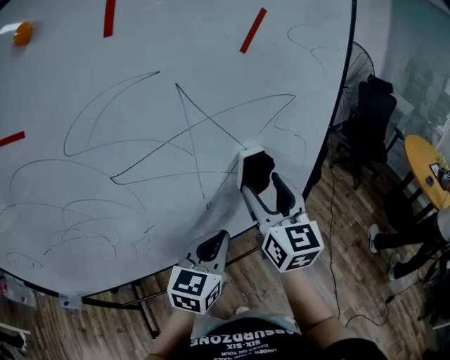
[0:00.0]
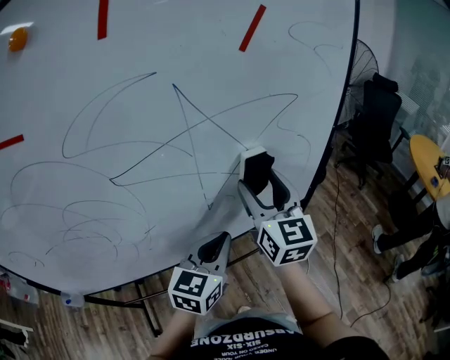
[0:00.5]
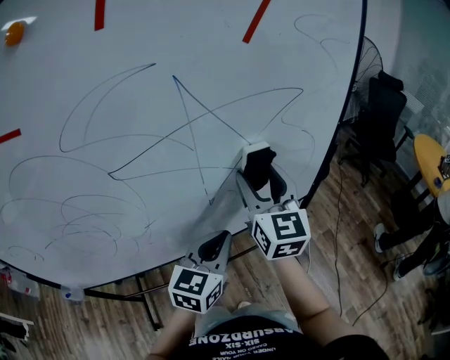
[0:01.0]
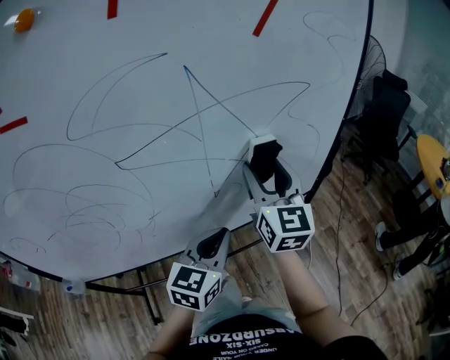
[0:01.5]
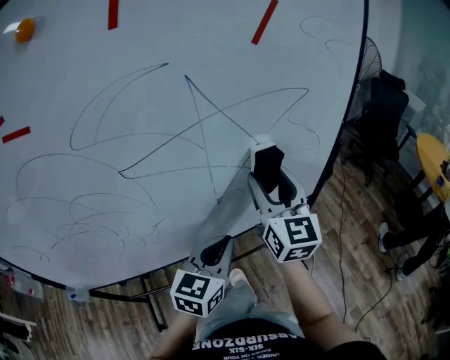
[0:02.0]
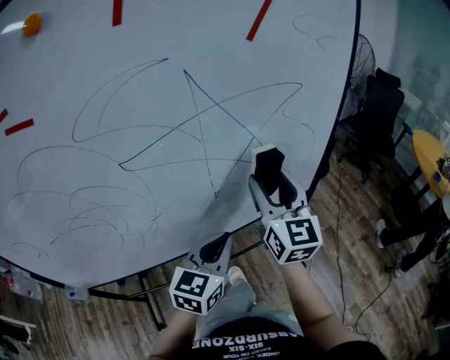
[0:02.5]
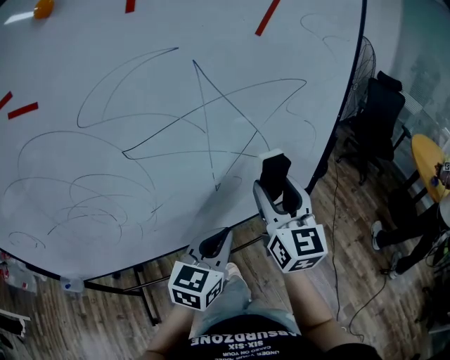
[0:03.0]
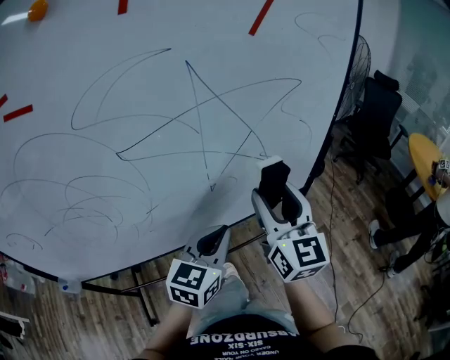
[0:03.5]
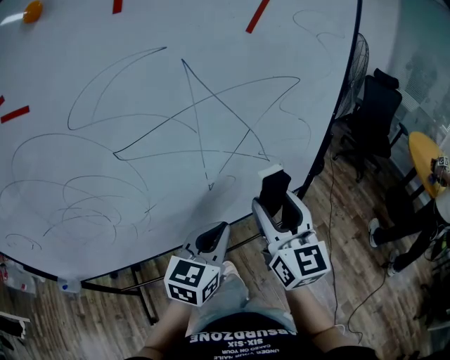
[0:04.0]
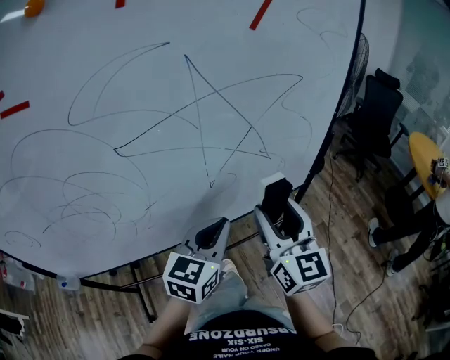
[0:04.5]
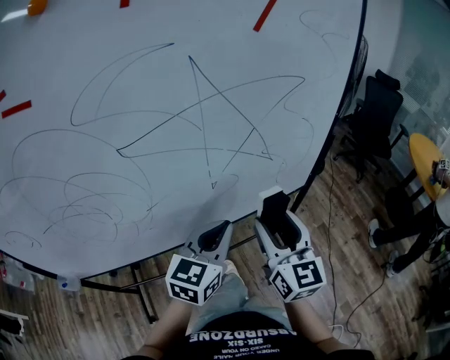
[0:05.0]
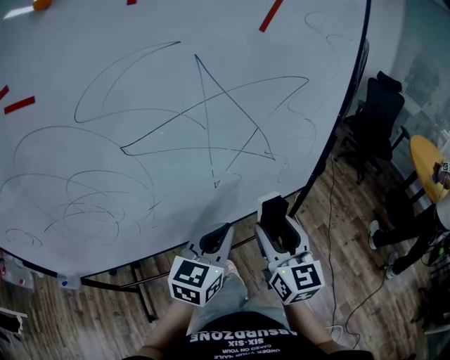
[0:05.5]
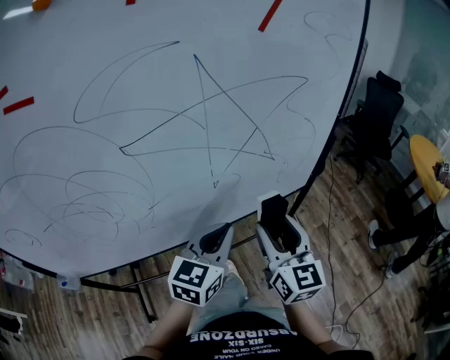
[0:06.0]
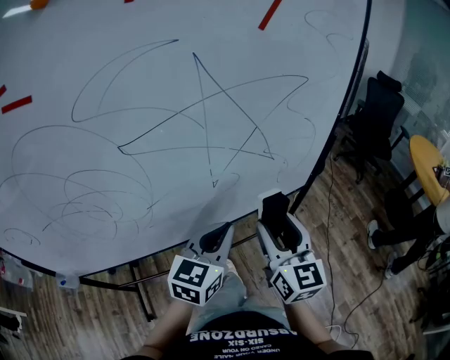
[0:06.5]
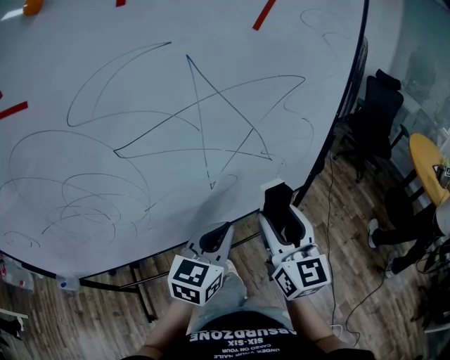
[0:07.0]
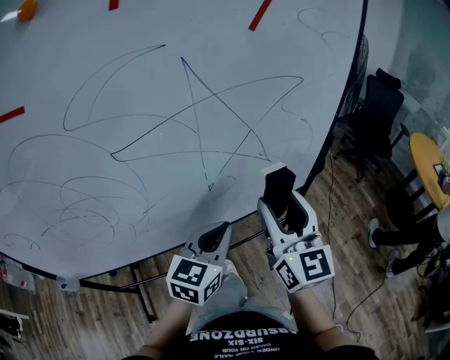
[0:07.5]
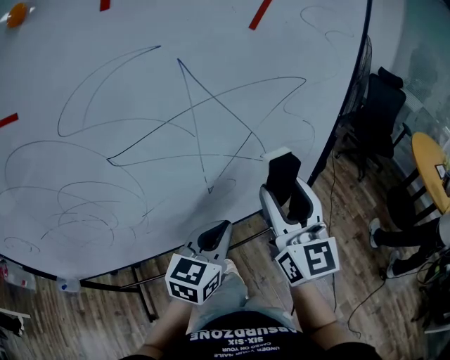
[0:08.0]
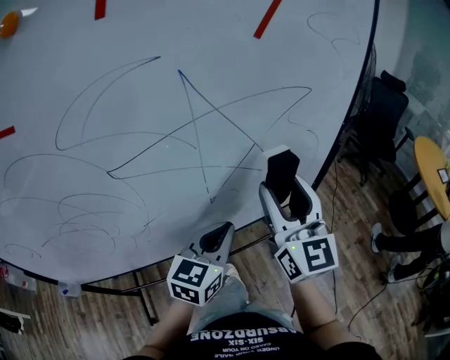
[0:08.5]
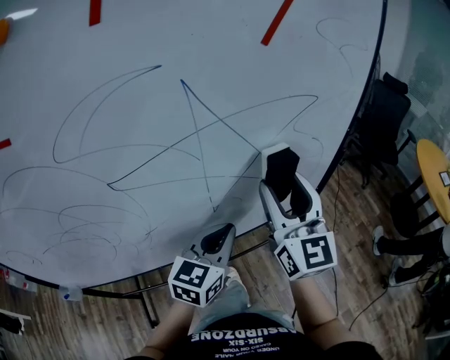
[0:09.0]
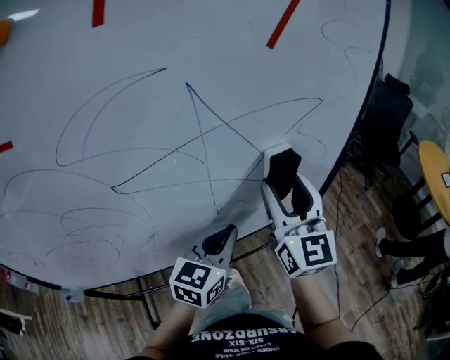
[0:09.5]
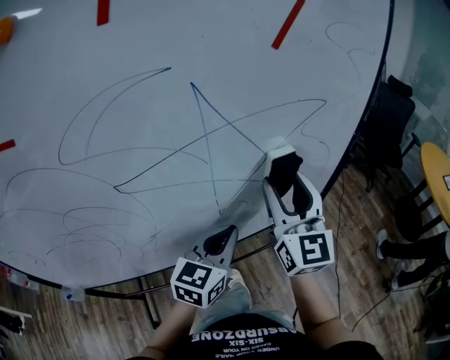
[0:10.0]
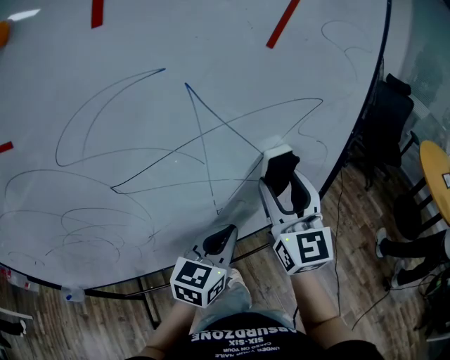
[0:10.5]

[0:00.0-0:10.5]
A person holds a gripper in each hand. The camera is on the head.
0:00.0 to 0:02.0: The grippers make only small movements.
0:02.0 to 0:04.0: The right gripper heads backward, covering some 10 cm.
0:04.0 to 0:06.5: The right gripper travels downward by roughly 5 cm.
0:06.5 to 0:08.5: The right gripper moves upward and forward, some 15 cm.
0:08.5 to 0:10.5: The grippers stay close to where they were, moving slightly.

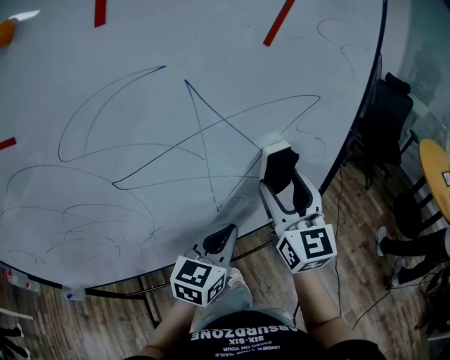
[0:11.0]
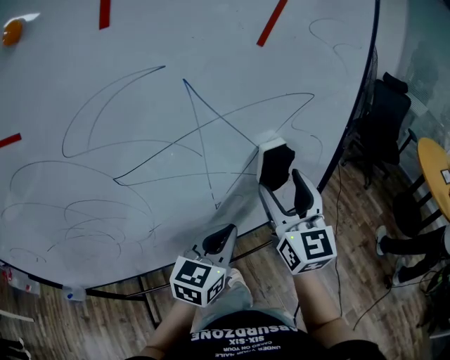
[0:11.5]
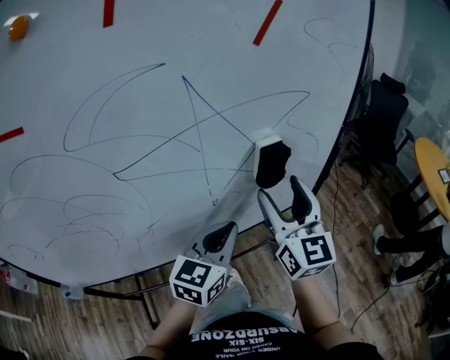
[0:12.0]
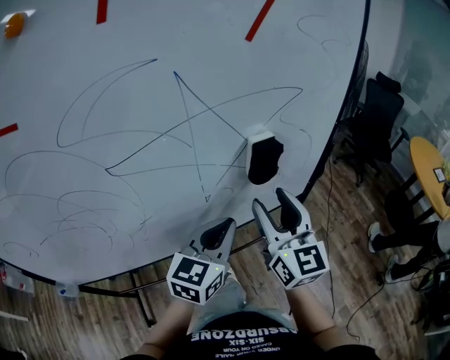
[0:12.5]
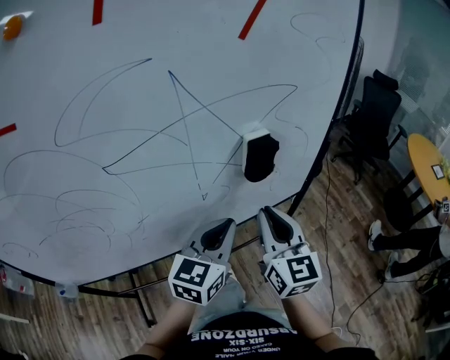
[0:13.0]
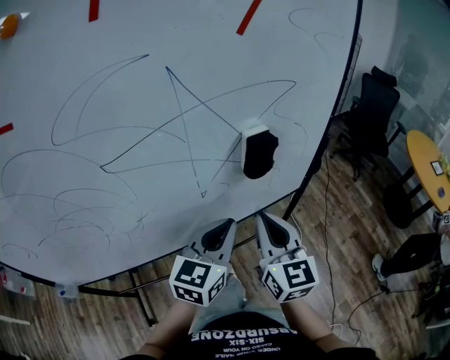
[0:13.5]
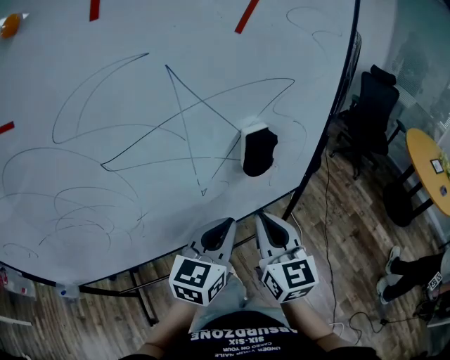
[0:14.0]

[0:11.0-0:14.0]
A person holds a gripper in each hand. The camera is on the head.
0:11.0 to 0:12.5: The right gripper goes some 5 cm backward.
0:12.5 to 0:14.0: The right gripper ends up roughly 5 cm from where it was, and closes.

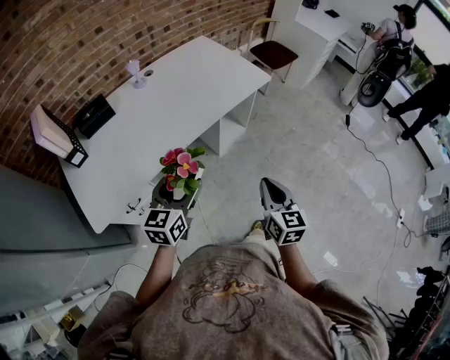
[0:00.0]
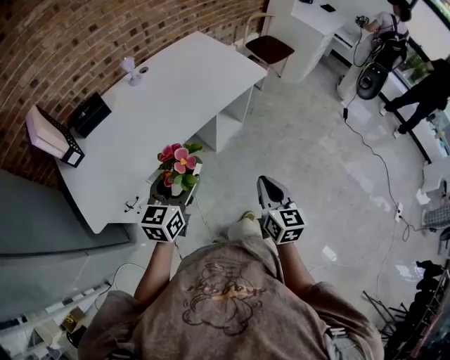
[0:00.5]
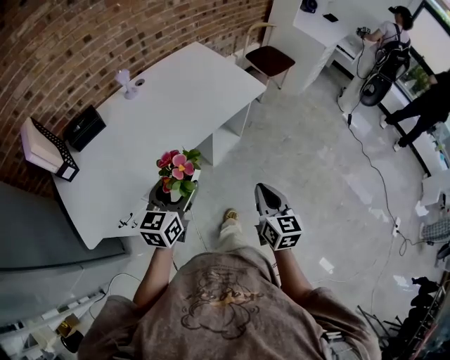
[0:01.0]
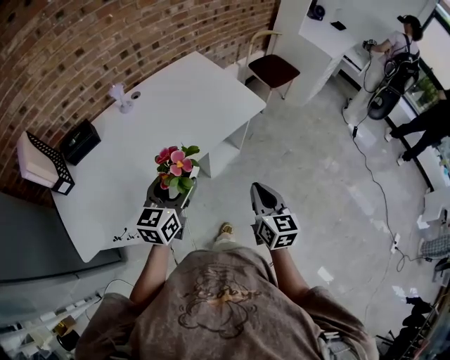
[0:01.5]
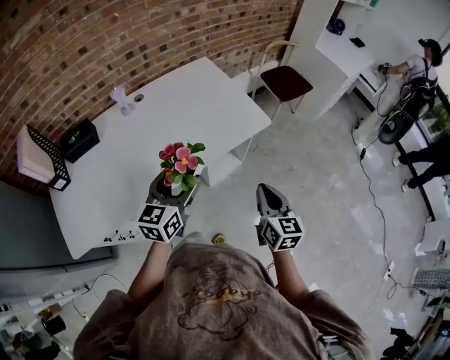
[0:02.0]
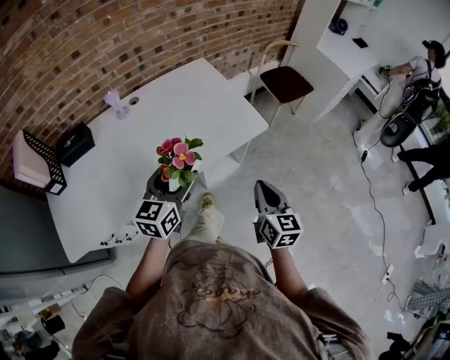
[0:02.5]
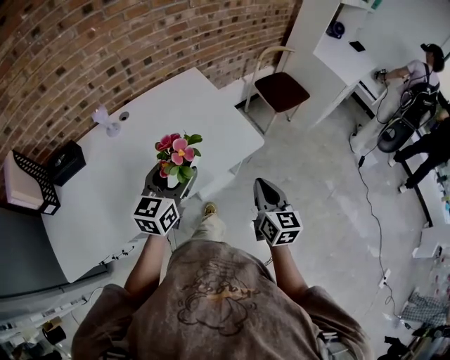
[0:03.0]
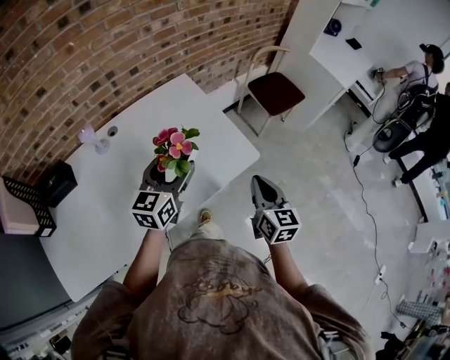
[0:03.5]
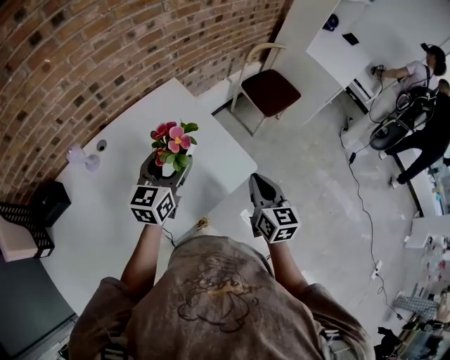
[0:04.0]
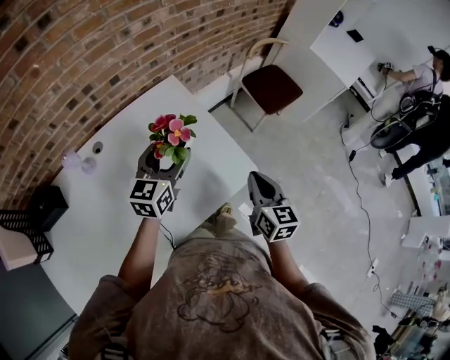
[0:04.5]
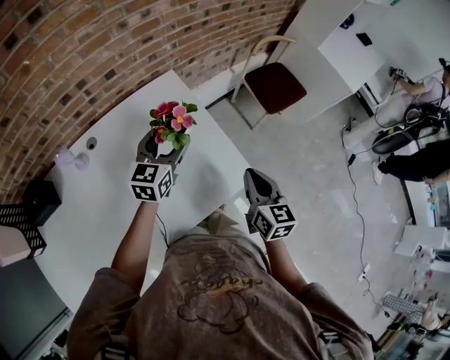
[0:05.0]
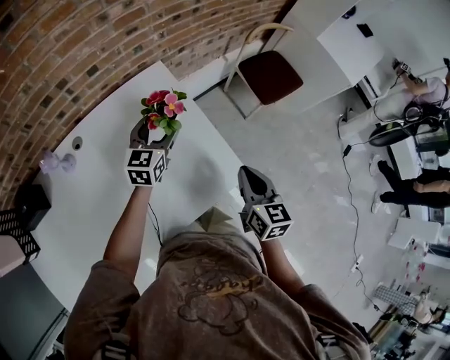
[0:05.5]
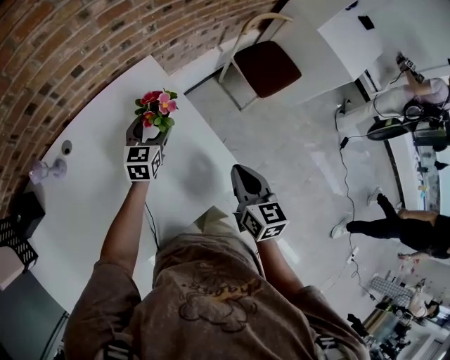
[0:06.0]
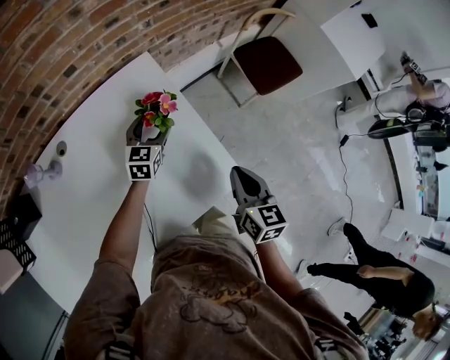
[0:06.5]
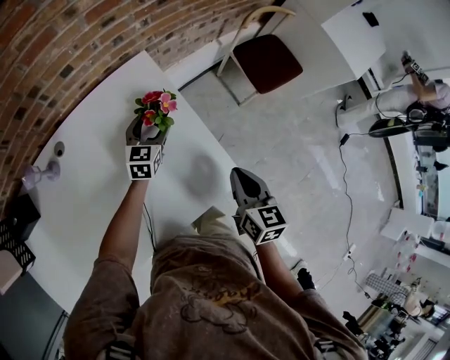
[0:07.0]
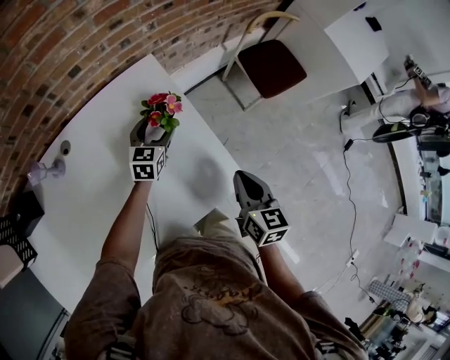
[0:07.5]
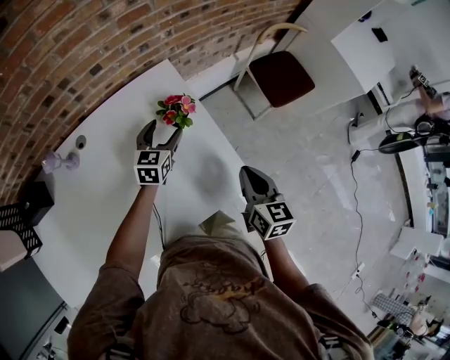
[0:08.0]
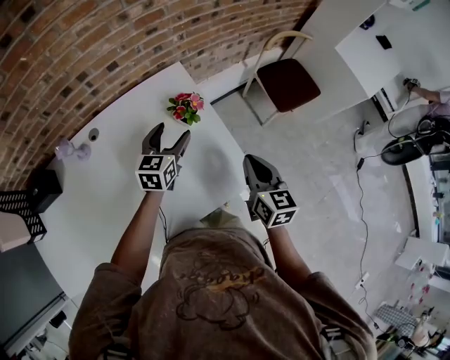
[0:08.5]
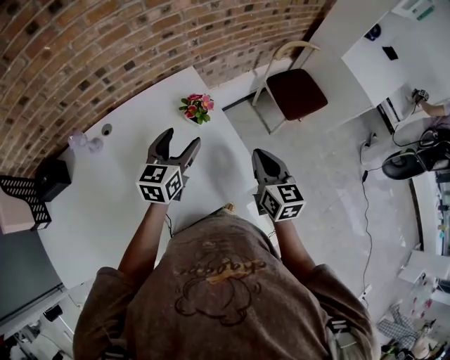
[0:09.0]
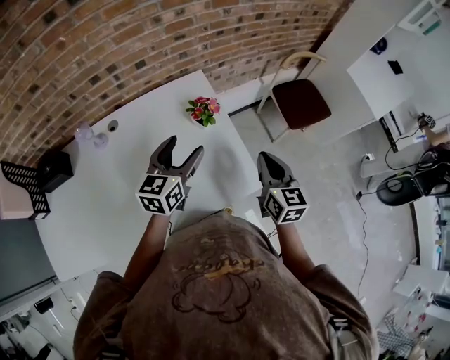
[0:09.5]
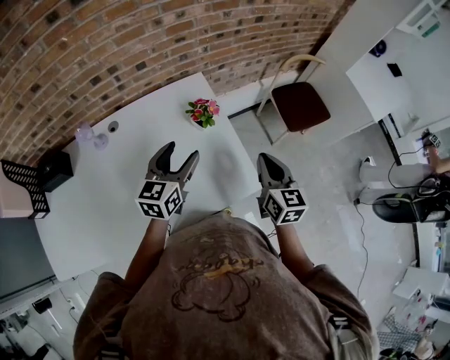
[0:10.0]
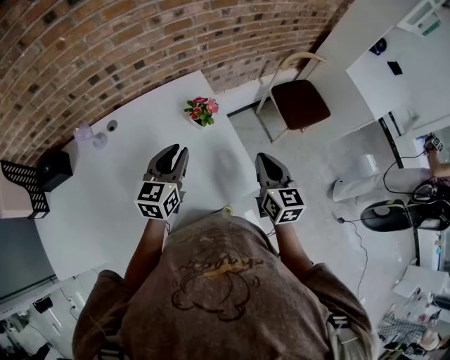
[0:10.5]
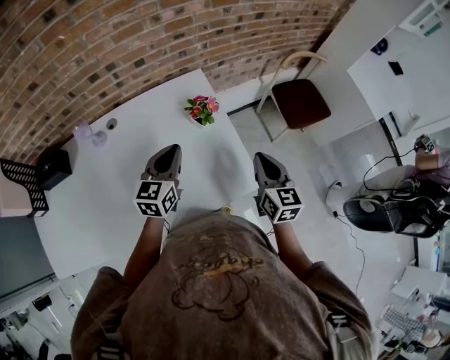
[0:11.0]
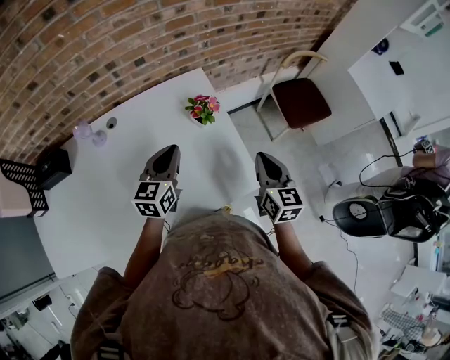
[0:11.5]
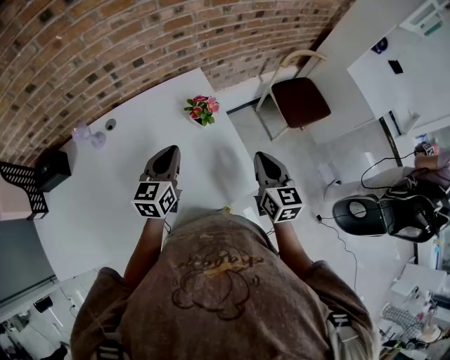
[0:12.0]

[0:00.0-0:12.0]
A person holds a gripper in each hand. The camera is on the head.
0:00.0 to 0:02.0: Both grippers move forward, approximately 25 cm.
0:02.0 to 0:04.0: Both grippers travel together forward, about 30 cm.
0:04.0 to 0:06.0: The left gripper heads forward and downward, covering roughly 25 cm, while the right gripper travels forward and downward by some 15 cm.
0:06.0 to 0:08.0: The grippers make only small movements.
0:08.0 to 0:10.0: The left gripper goes about 20 cm upward and backward. Meanwhile the right gripper is displaced upward by approximately 5 cm.
0:10.0 to 0:12.0: The left gripper closes up.

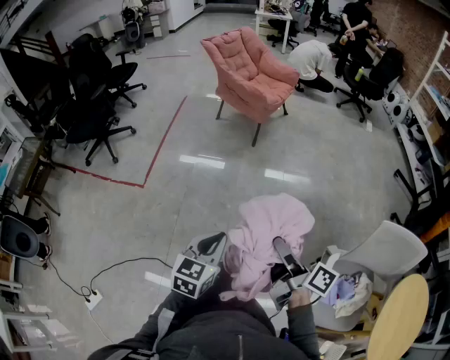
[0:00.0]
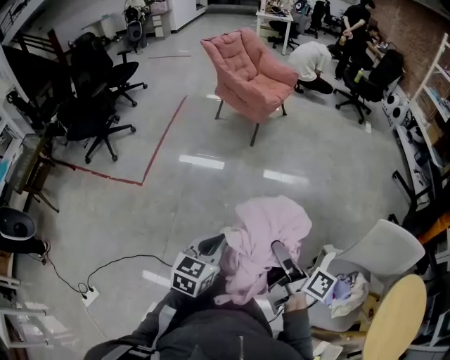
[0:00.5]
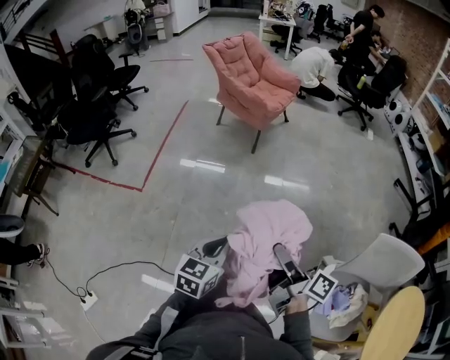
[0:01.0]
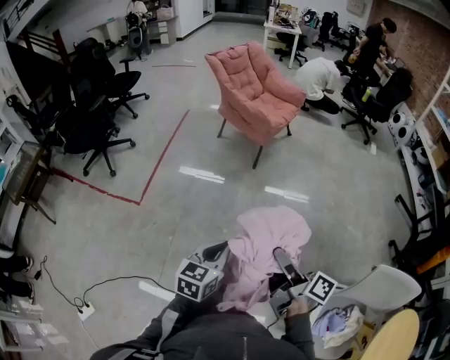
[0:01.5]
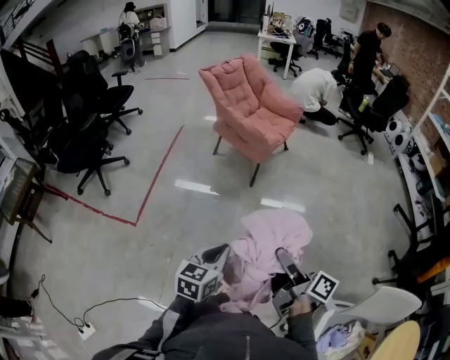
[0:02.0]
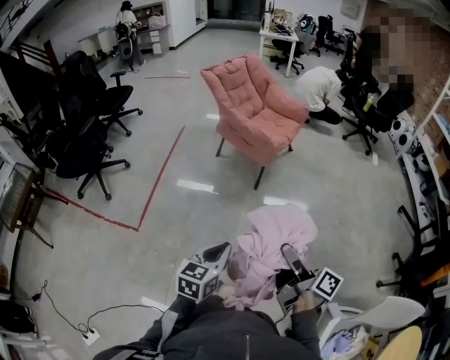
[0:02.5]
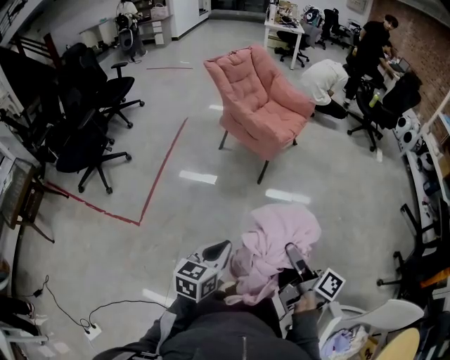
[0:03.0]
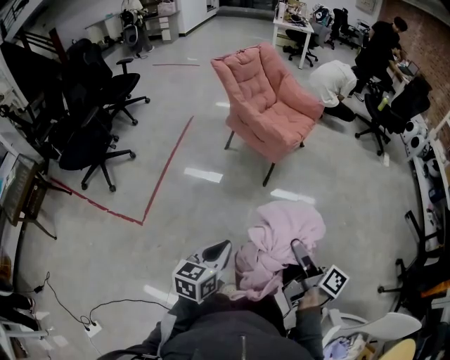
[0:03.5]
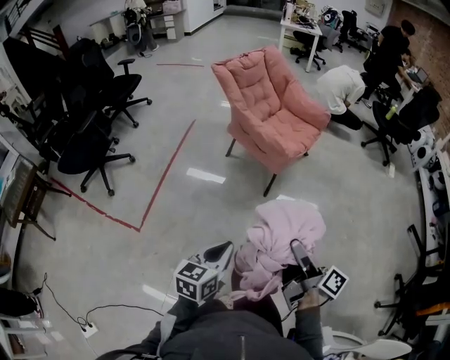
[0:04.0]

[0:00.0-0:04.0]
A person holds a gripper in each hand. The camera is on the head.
0:00.0 to 0:02.0: Both grippers travel together forward, roughly 25 cm.
0:02.0 to 0:04.0: The grippers both shift forward by roughly 25 cm.
